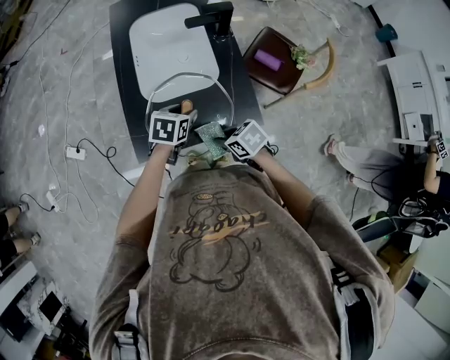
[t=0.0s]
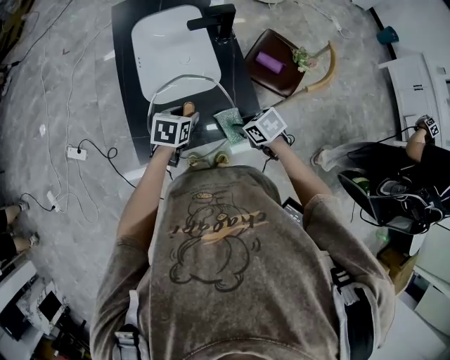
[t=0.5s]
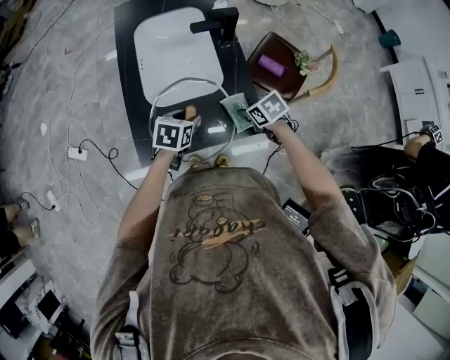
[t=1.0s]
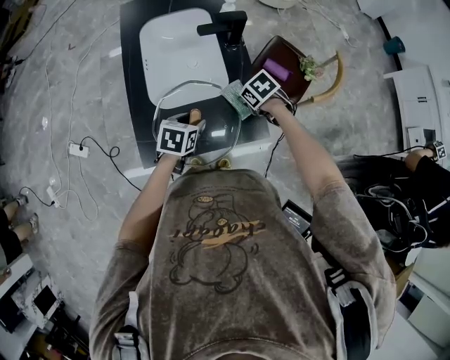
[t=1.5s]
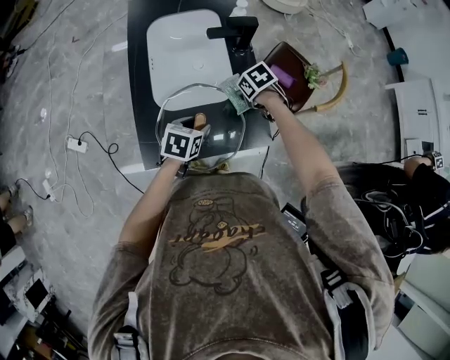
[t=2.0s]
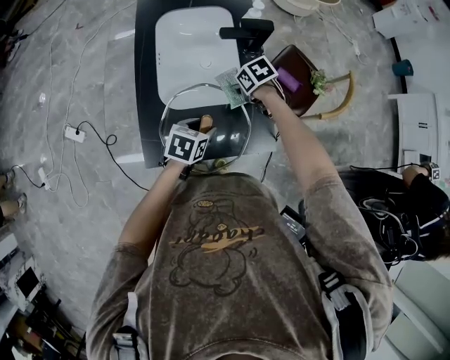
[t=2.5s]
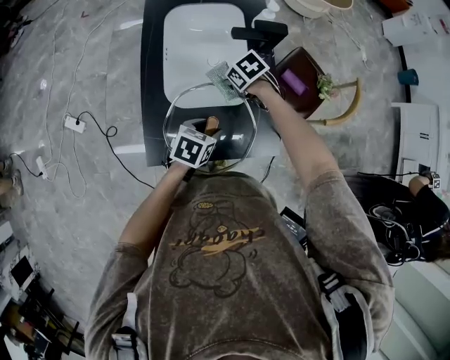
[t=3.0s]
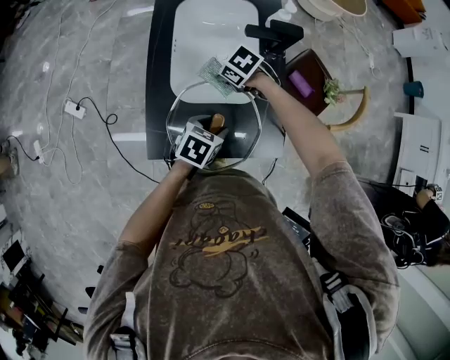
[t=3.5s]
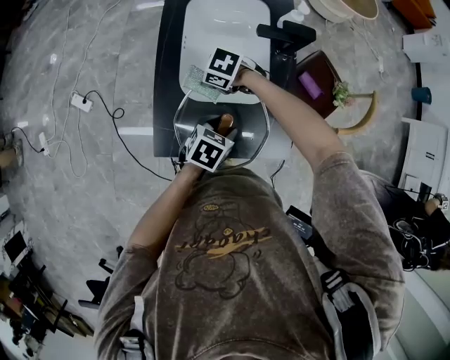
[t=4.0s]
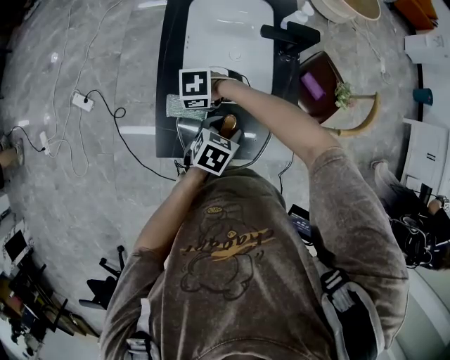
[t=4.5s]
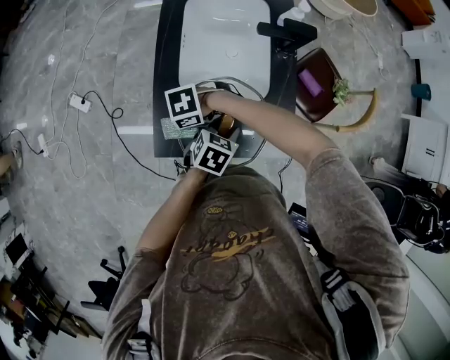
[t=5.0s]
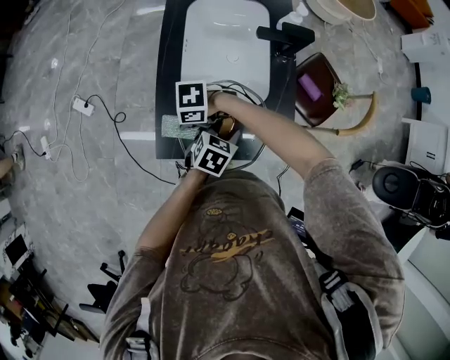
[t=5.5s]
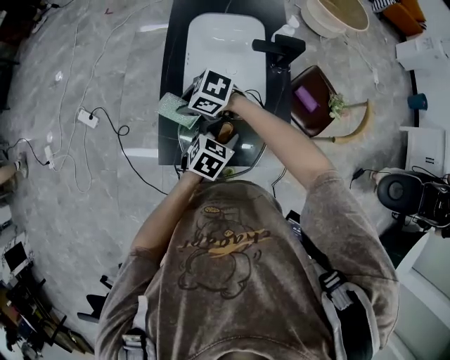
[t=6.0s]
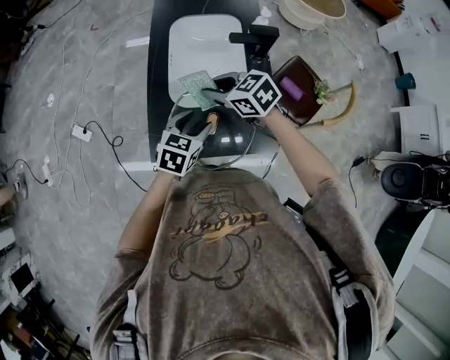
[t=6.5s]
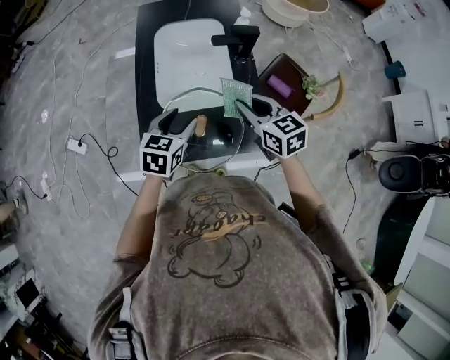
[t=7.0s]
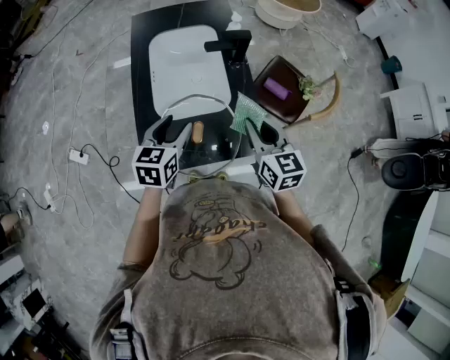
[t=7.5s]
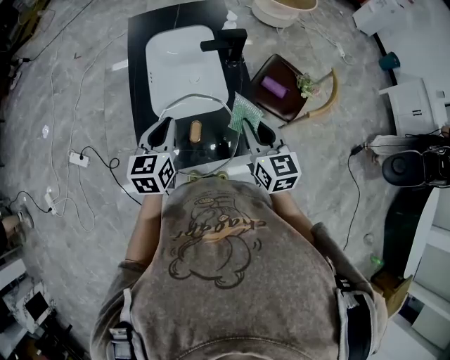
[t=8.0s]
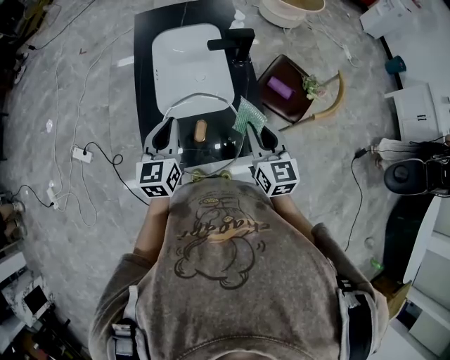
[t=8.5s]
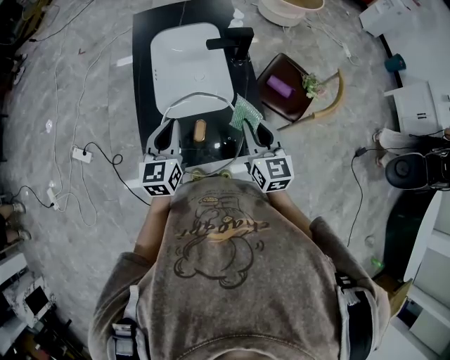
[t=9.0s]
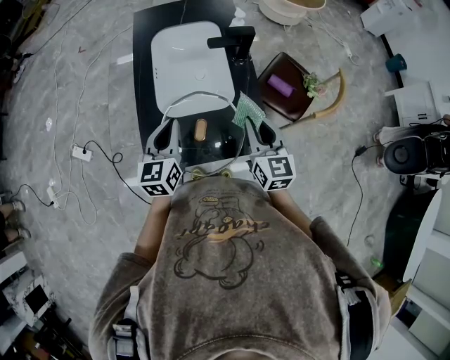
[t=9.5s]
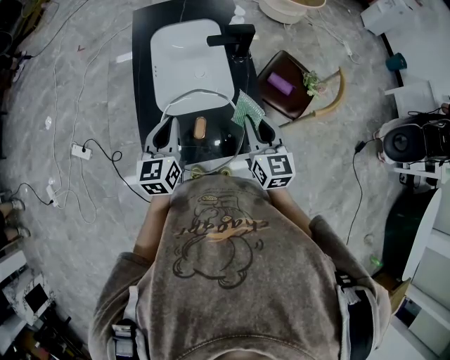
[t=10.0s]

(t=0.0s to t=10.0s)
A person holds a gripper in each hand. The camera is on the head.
t=0.0s - t=2.0s: The right gripper heads forward and to the right, covering roughly 20 cm.
t=2.0s - t=4.0s: The right gripper shifts by approximately 25 cm, and twists some 40 degrees counterclockwise, seen from behind.
t=4.0s - t=6.0s: The right gripper changes place by about 15 cm.
t=6.0s - t=8.0s: The right gripper ends up about 30 cm from where it was, and changes its angle by about 80 degrees, while the left gripper shifts roughly 15 cm upward, turns by about 30 degrees, and closes its fingers.
t=8.0s - t=10.0s: The grippers move only a little.

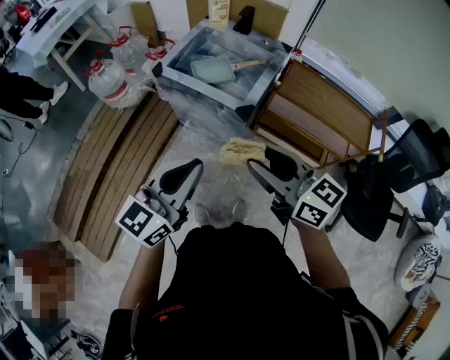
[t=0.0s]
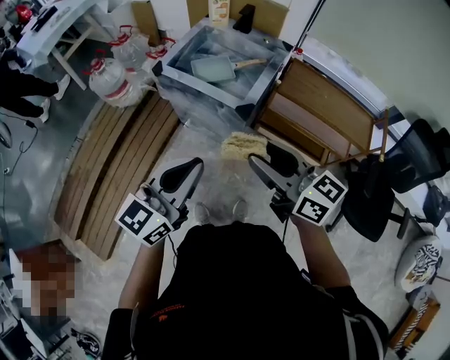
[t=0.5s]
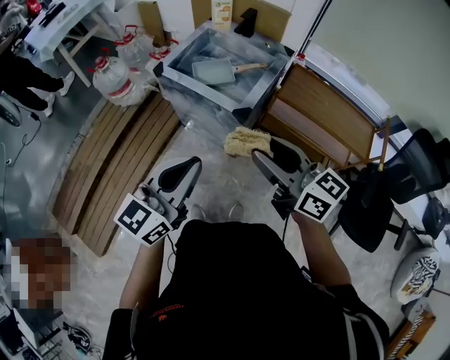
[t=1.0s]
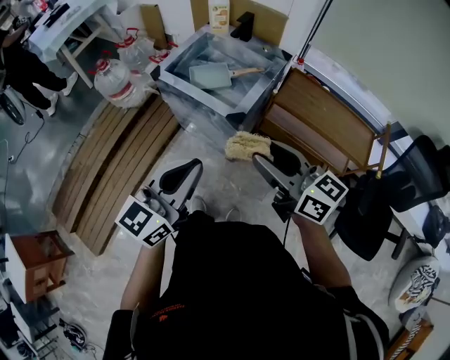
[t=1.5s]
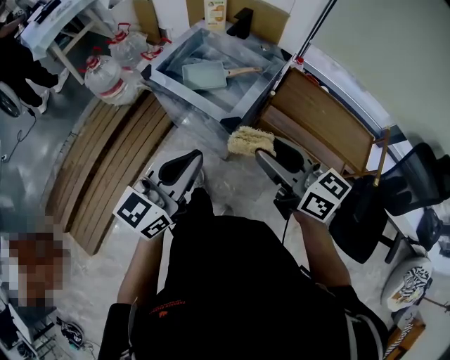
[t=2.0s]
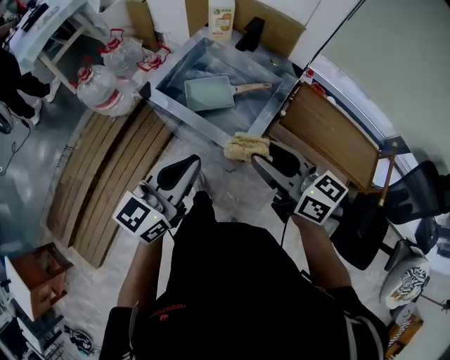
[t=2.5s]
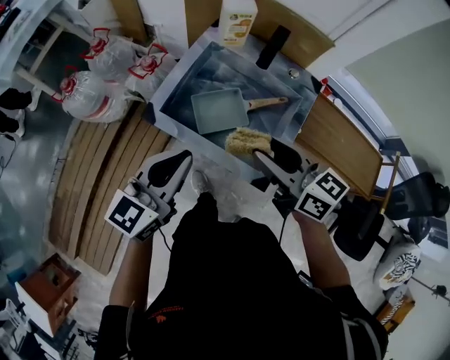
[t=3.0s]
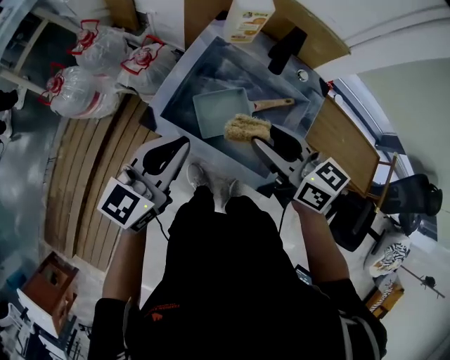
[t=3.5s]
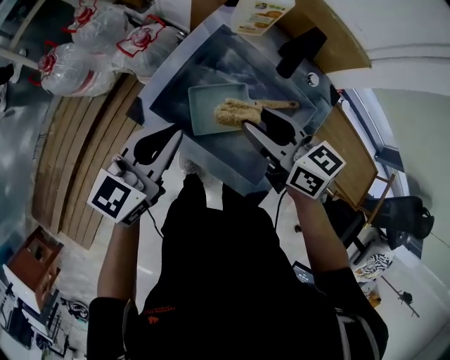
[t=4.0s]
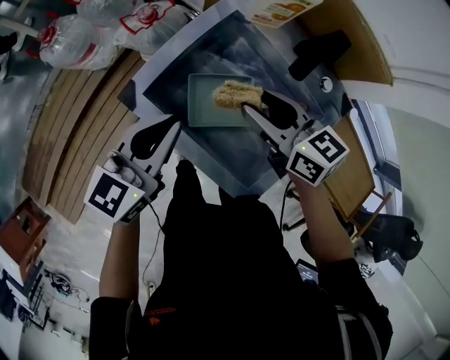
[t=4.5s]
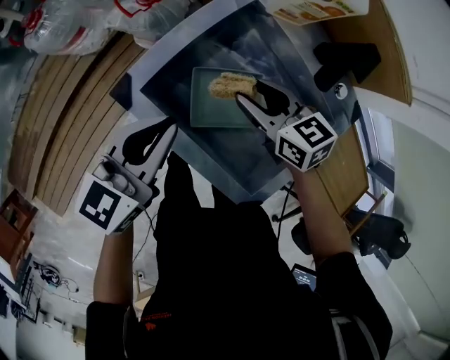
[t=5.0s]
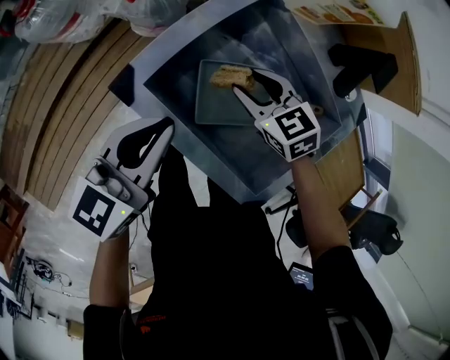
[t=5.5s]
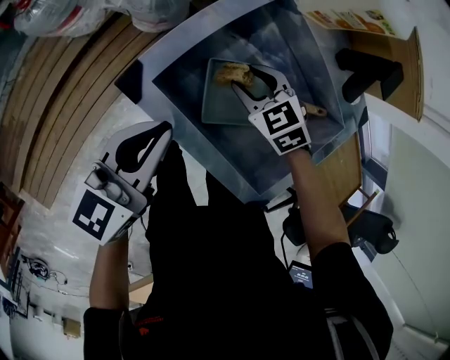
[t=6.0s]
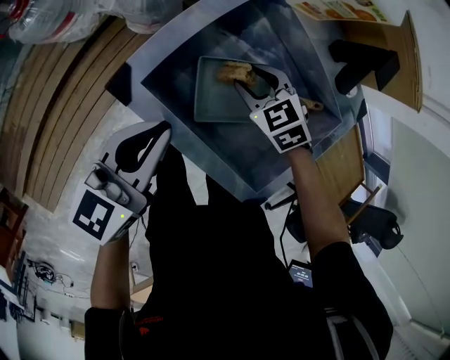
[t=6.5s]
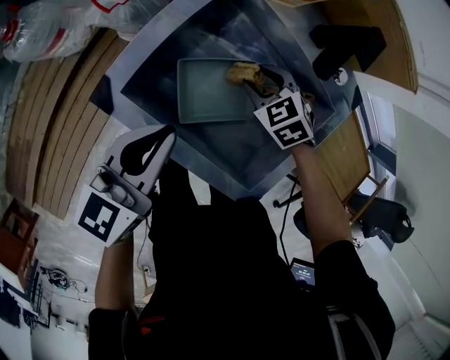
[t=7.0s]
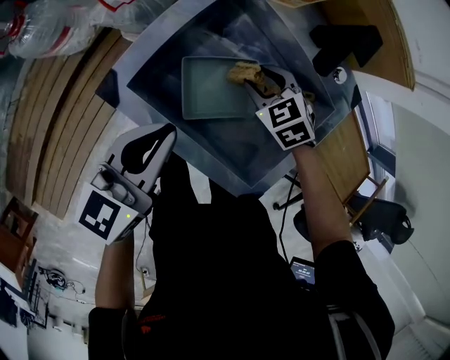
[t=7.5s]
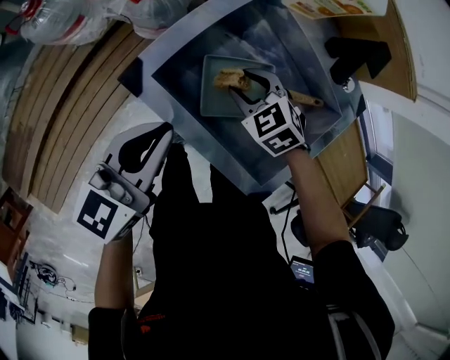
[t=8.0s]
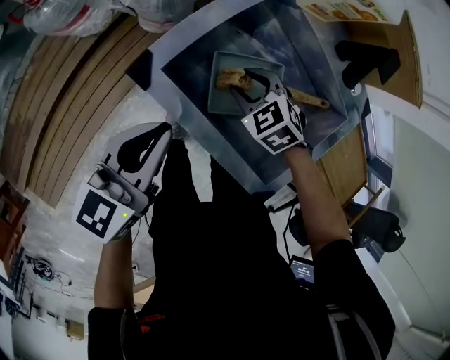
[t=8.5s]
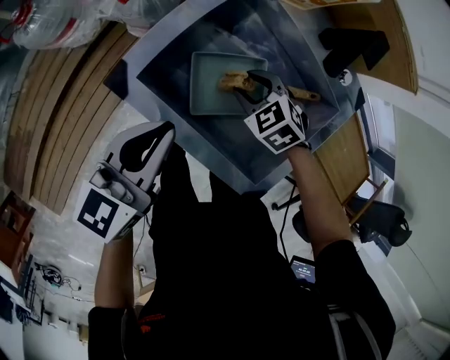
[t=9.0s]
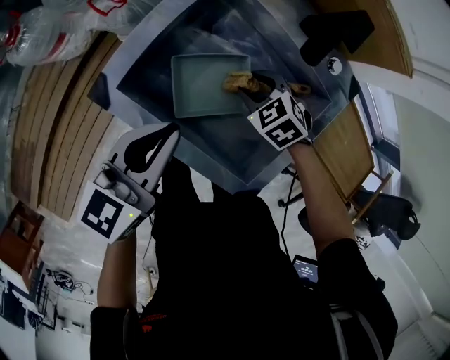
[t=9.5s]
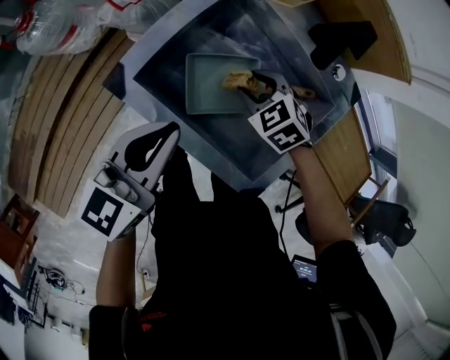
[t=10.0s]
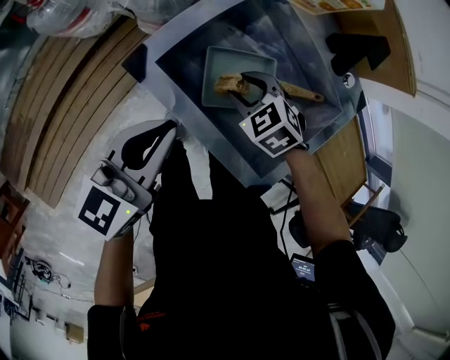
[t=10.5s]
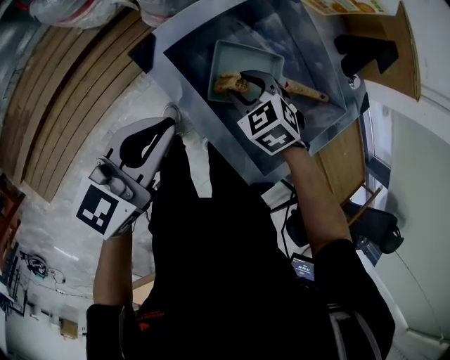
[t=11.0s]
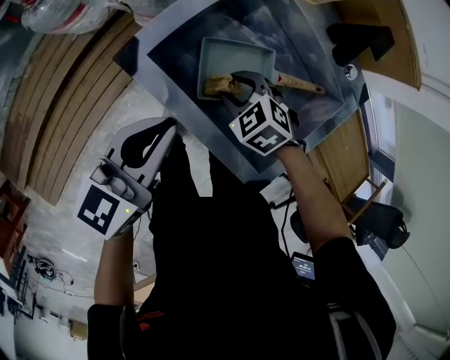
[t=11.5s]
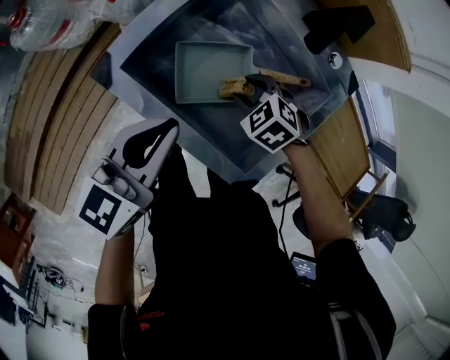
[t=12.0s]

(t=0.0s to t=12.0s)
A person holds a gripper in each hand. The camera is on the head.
t=0.0s - t=2.0s: Both grippers move to the right and forward, roughly 10 cm.
t=2.0s - t=4.0s: The pair of grippers is taken forward, roughly 40 cm.
t=4.0s - t=6.0s: The left gripper goes approximately 15 cm downward and to the left. The right gripper shifts roughly 25 cm downward, and angles its fingers downward, by some 40 degrees.
t=6.0s - t=8.0s: The right gripper moves some 10 cm to the right and comes back.
t=8.0s - t=10.0s: Both grippers move to the right, roughly 5 cm.
t=10.0s - t=12.0s: The right gripper reaches approximately 10 cm to the left, then returns; the left gripper moves about 5 cm to the left and comes back.

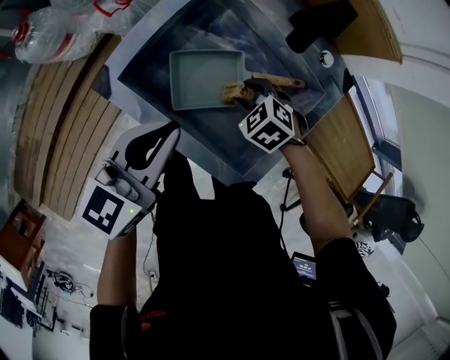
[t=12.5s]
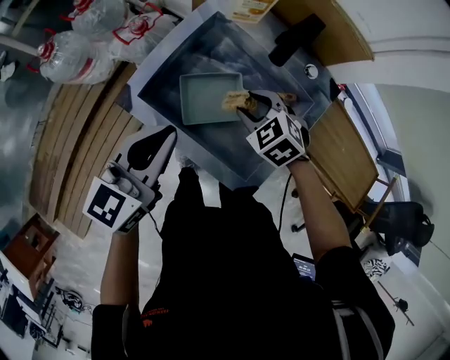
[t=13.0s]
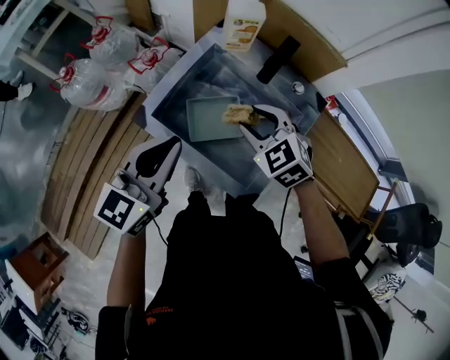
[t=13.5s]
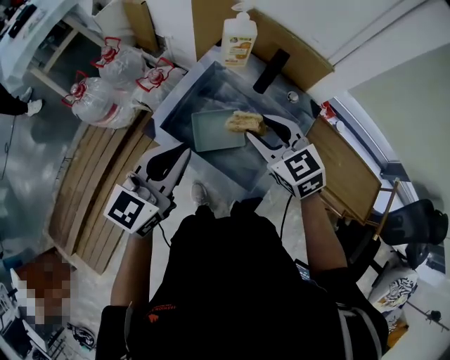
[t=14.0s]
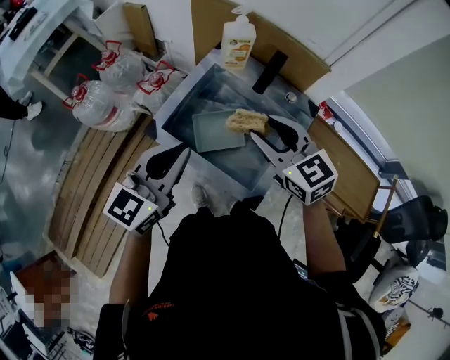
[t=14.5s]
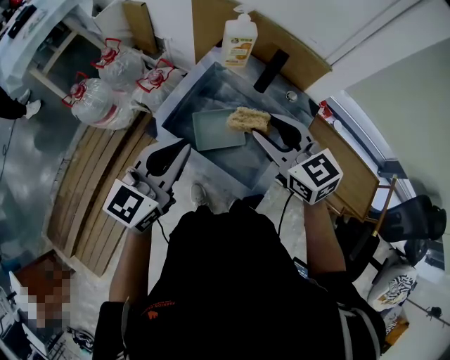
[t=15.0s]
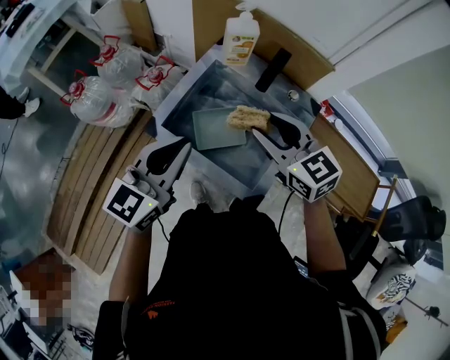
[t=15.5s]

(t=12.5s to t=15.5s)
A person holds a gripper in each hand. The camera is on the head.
t=12.5s - t=14.0s: The left gripper shifts roughly 15 cm upward; the right gripper moves upward, some 30 cm, and points its fingers some 40 degrees further upward.
t=14.0s - t=15.5s: There are only small adjustments of the grippers.

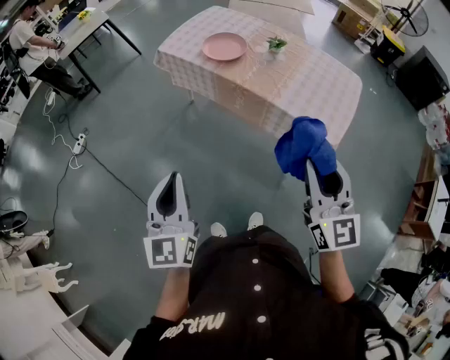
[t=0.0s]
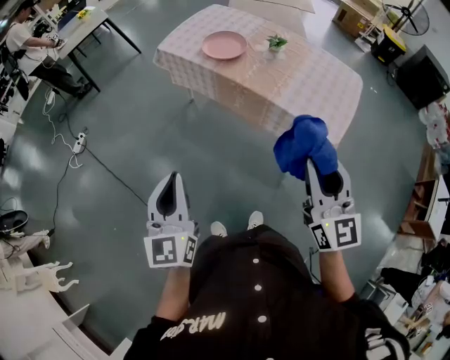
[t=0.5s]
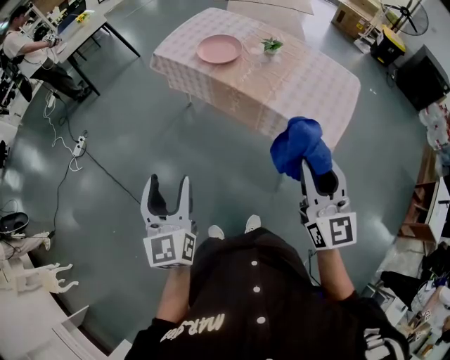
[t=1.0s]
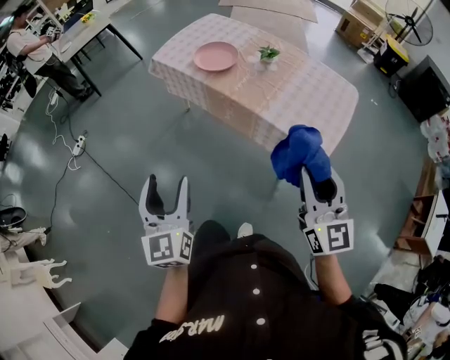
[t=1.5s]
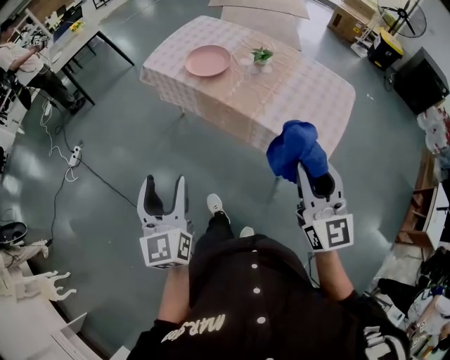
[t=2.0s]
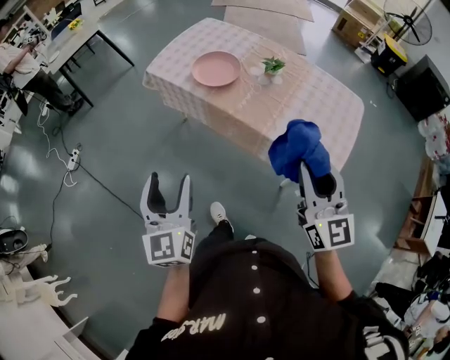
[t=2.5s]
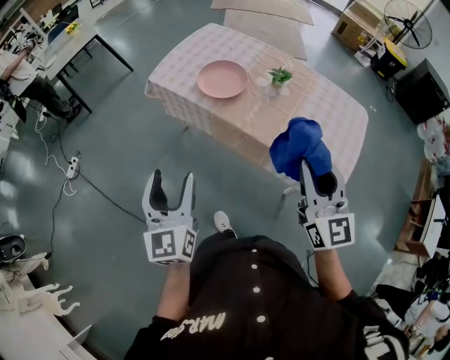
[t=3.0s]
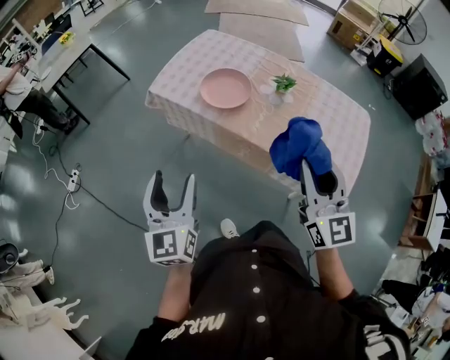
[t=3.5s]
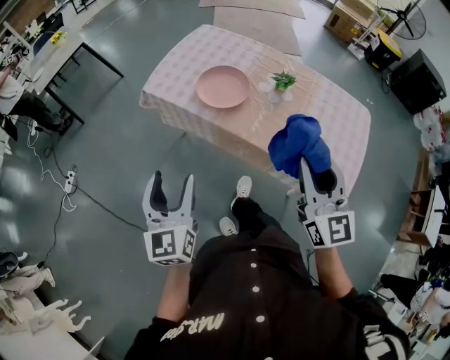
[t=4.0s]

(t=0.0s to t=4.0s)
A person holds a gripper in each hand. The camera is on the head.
t=0.0s - t=2.0s: The left gripper heads forward and to the right, covering some 10 cm, and opens up. Meanwhile the right gripper heads to the right and forward, covering about 10 cm.
t=2.0s - t=4.0s: The left gripper is displaced forward by roughly 25 cm. Meanwhile the right gripper travels forward and to the left by about 25 cm.
